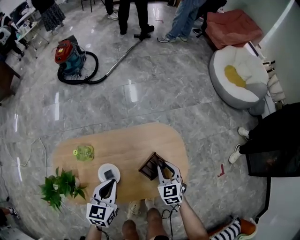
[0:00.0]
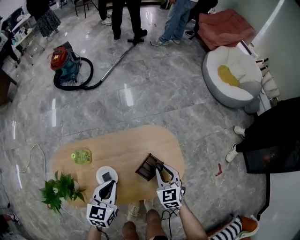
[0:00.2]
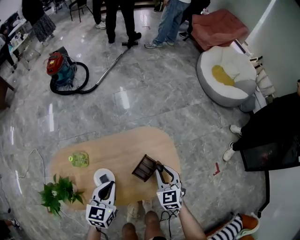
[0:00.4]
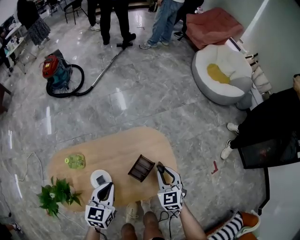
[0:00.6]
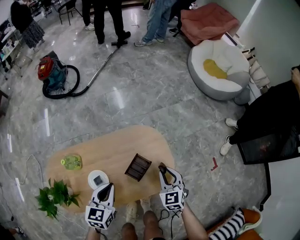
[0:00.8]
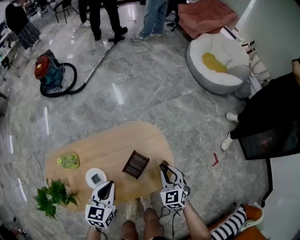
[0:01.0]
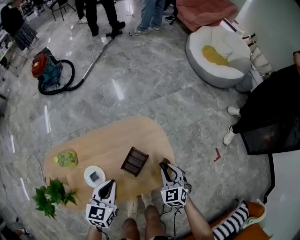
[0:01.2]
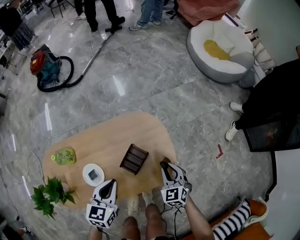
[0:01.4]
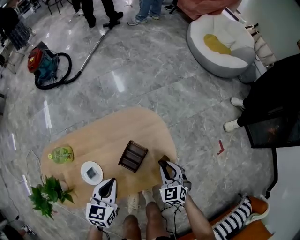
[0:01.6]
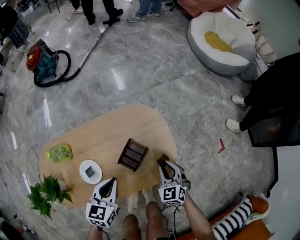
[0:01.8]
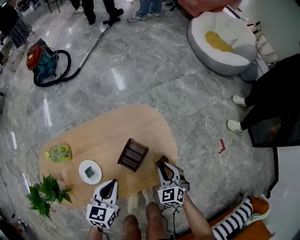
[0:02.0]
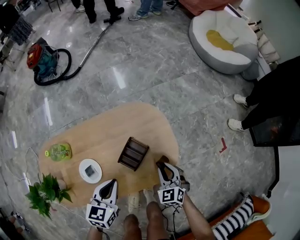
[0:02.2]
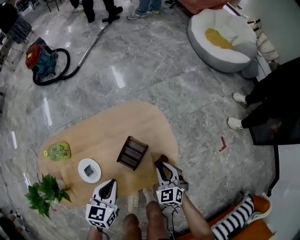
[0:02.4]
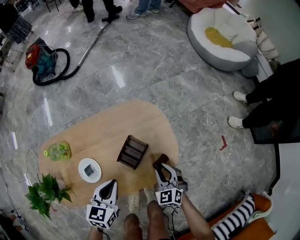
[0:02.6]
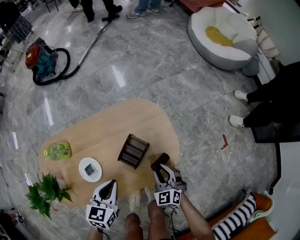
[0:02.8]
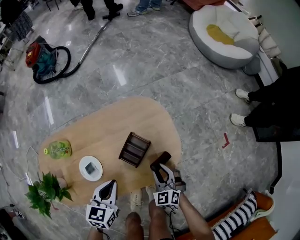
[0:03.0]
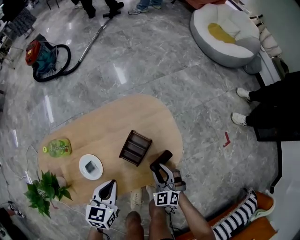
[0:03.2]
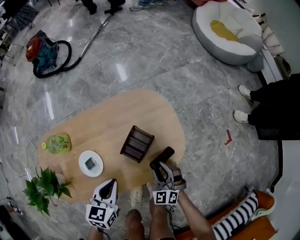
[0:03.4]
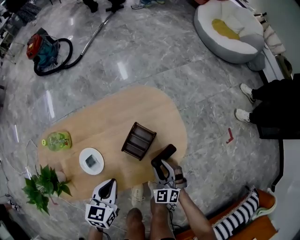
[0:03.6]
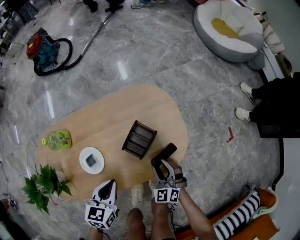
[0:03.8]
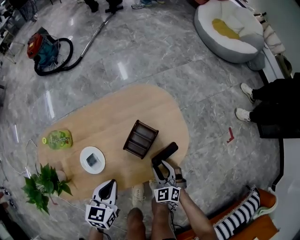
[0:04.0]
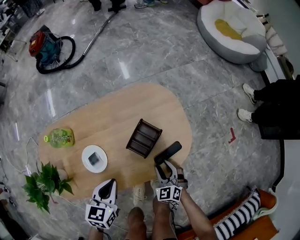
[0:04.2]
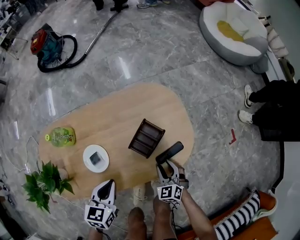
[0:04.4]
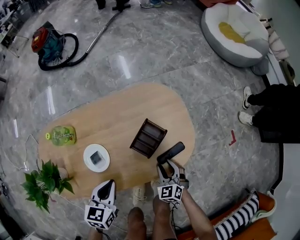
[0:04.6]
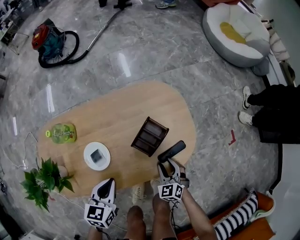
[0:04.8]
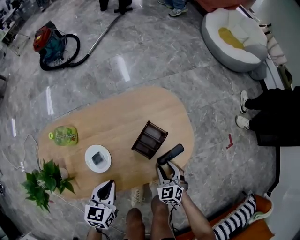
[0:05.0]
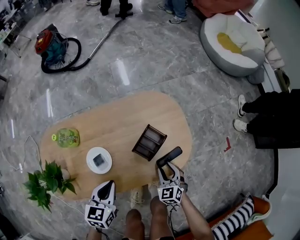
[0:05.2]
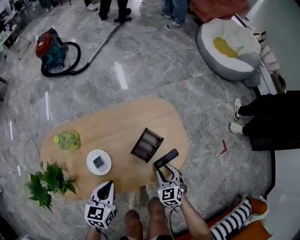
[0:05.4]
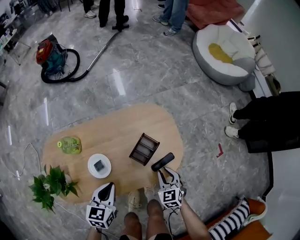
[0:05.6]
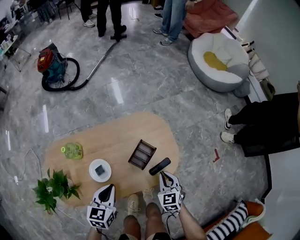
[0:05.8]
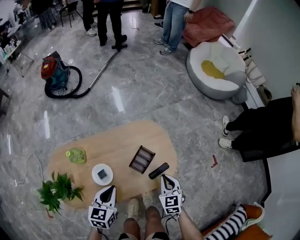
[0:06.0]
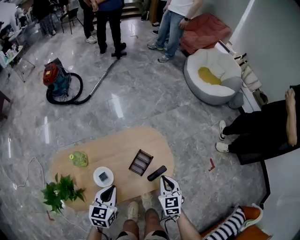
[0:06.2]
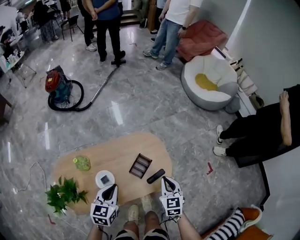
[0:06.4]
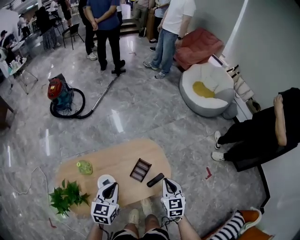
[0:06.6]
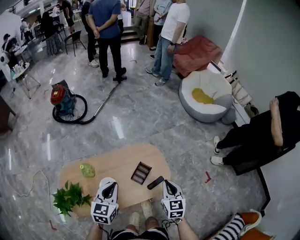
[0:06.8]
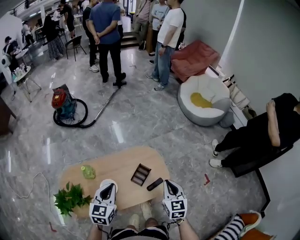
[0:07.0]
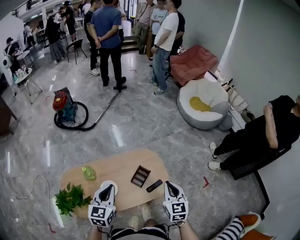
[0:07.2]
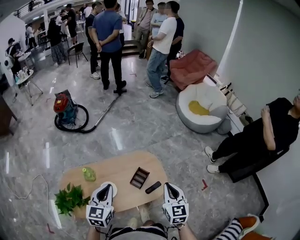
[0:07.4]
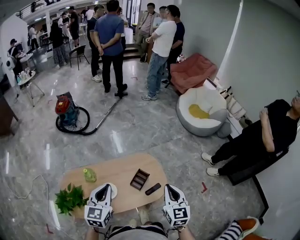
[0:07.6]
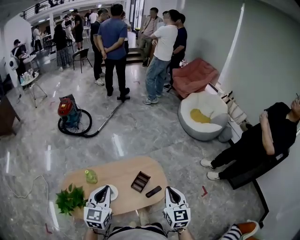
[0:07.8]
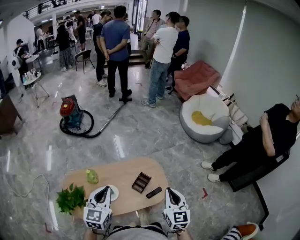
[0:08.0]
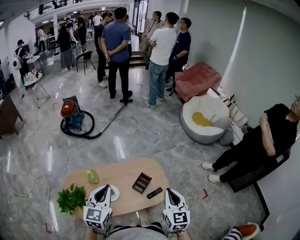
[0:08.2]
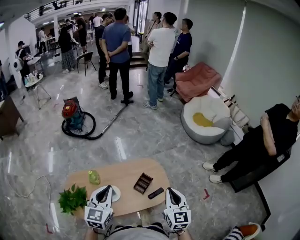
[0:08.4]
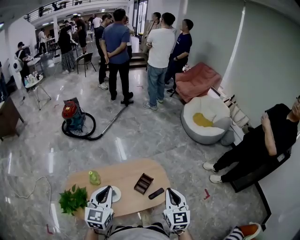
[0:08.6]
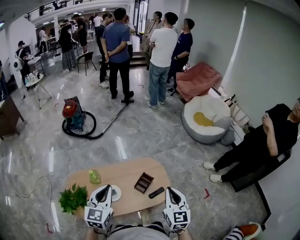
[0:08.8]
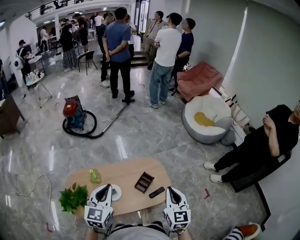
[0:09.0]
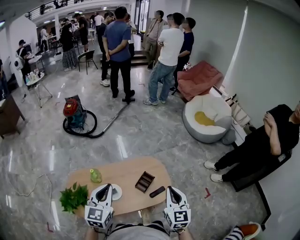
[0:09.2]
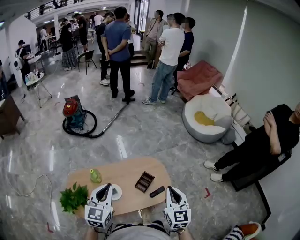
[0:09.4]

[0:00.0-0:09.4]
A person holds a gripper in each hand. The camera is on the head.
0:00.0 to 0:01.6: The right gripper goes approximately 15 cm to the right, downward and backward. Meanwhile the left gripper is displaced to the right and downward by roughly 15 cm.
0:01.6 to 0:03.2: The right gripper moves downward and backward, approximately 10 cm; the left gripper heads downward, covering roughly 5 cm.
0:03.2 to 0:04.8: The right gripper goes roughly 5 cm downward; the left gripper moves to the left, roughly 5 cm.
0:04.8 to 0:06.2: The right gripper goes some 30 cm upward, turns by roughly 30 degrees, and closes its fingers. The left gripper travels upward by some 20 cm.
0:06.2 to 0:07.8: Both grippers move upward, about 25 cm. The right gripper turns by some 20 degrees. The left gripper changes its angle by about 20 degrees.
0:07.8 to 0:09.4: The grippers move only a little.

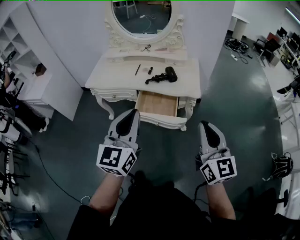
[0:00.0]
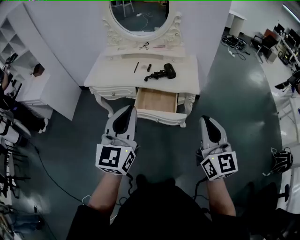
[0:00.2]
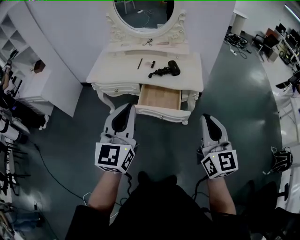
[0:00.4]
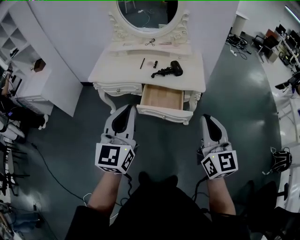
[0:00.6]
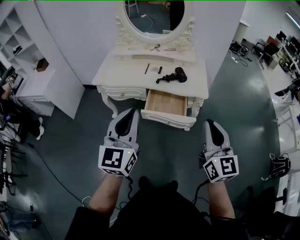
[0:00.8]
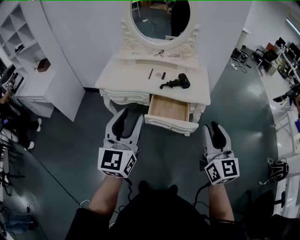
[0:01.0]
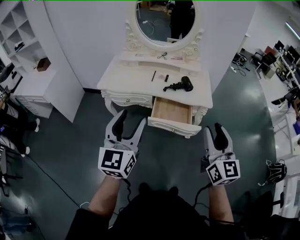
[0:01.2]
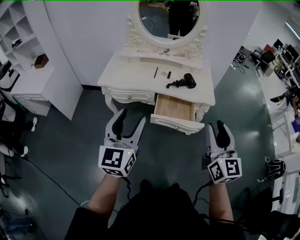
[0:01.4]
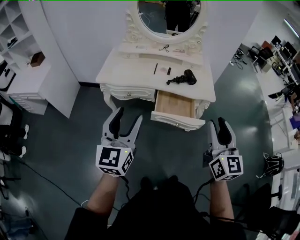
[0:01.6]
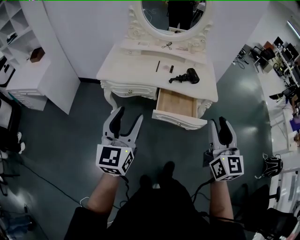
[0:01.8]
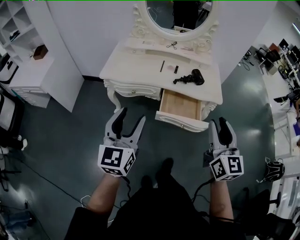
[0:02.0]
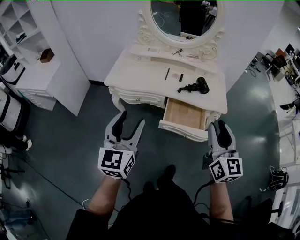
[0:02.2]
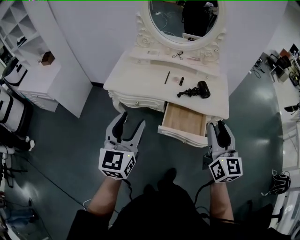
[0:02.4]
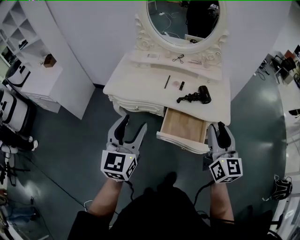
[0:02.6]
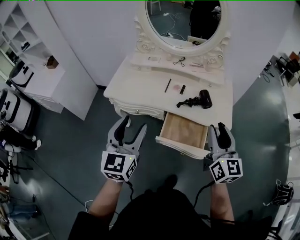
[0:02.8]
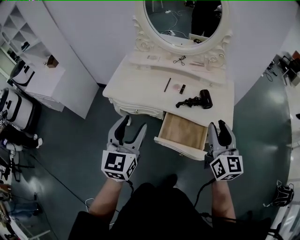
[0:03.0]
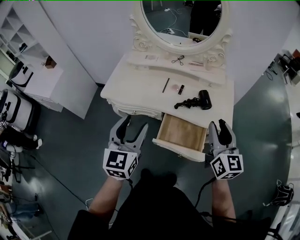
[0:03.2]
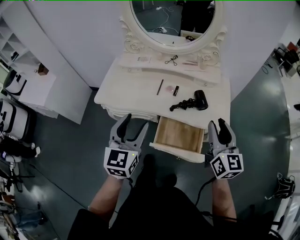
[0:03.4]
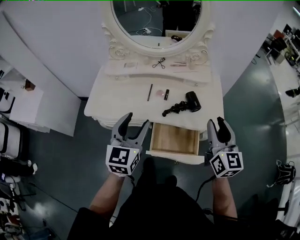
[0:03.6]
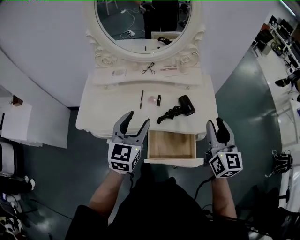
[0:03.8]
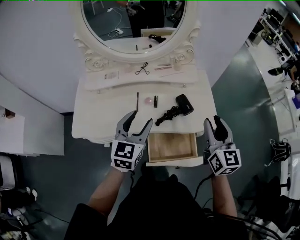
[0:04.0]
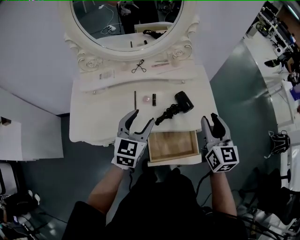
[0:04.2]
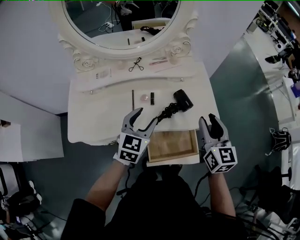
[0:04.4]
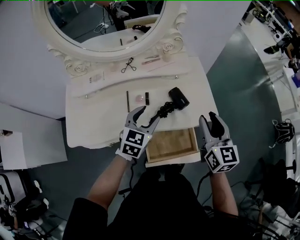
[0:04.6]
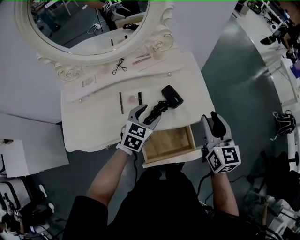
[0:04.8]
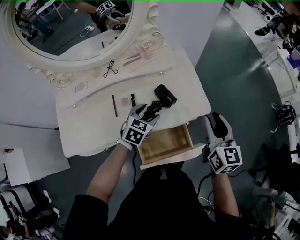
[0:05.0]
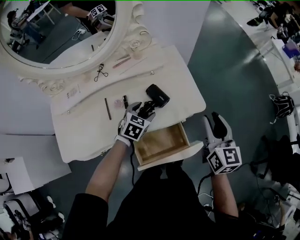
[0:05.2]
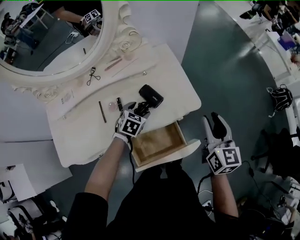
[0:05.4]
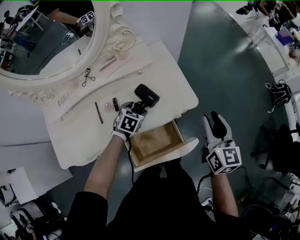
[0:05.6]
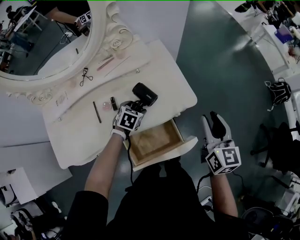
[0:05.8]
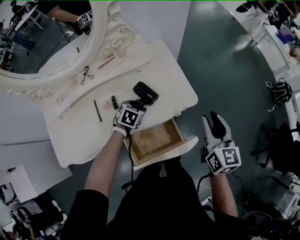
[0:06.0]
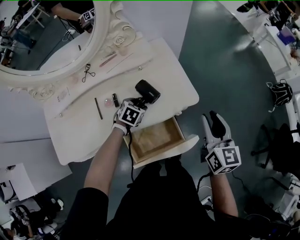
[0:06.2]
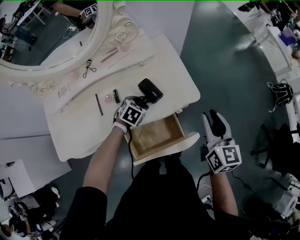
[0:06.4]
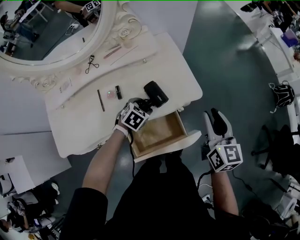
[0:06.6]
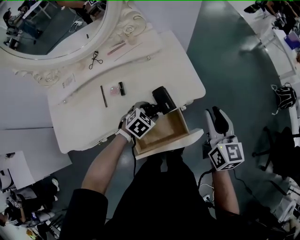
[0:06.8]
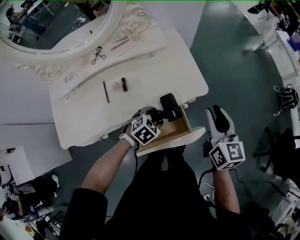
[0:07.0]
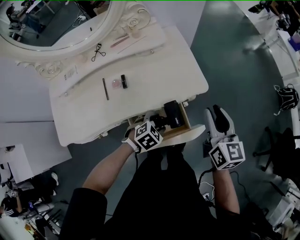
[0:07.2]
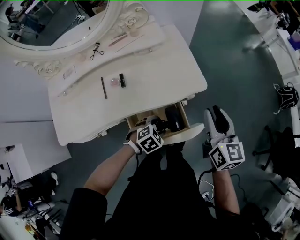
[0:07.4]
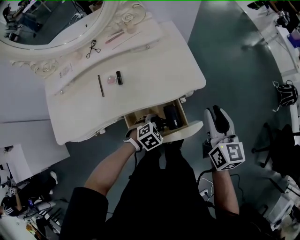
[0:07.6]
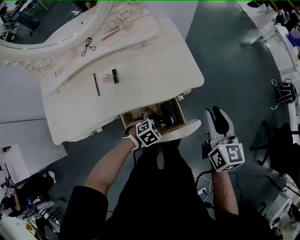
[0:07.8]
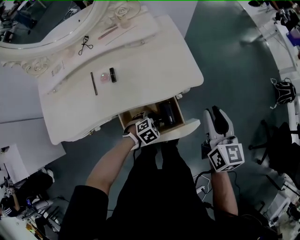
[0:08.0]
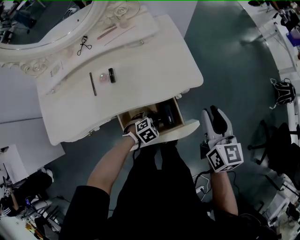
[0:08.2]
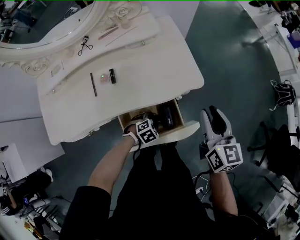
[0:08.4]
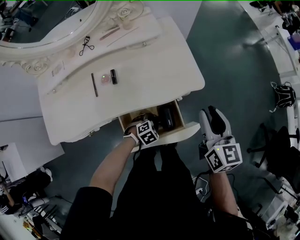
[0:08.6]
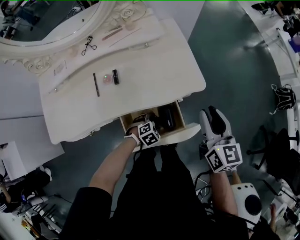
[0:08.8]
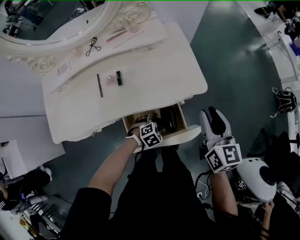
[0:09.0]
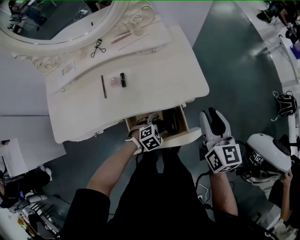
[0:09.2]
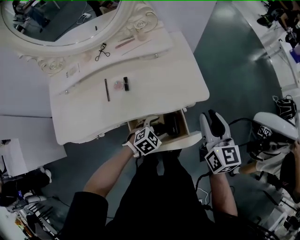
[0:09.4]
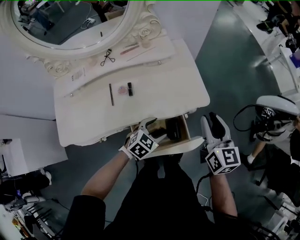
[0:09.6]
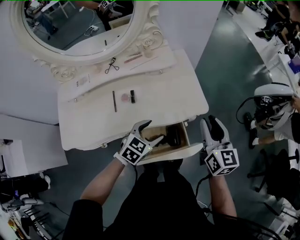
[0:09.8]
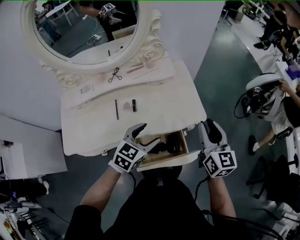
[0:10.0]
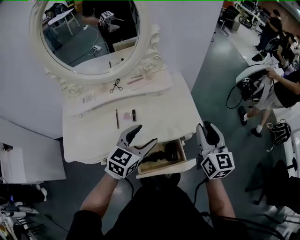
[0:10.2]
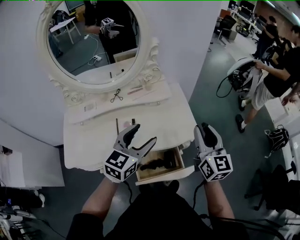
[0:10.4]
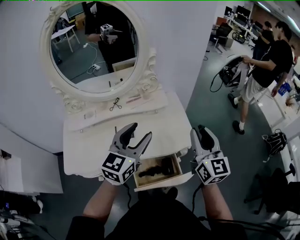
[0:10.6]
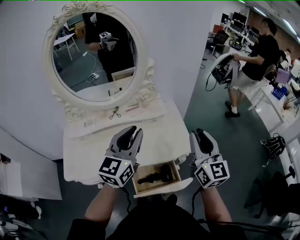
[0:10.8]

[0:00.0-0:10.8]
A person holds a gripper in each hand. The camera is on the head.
0:00.0 to 0:01.6: The grippers both shift to the left by some 20 cm. The right gripper opens up; the left gripper opens its fingers.
0:01.6 to 0:03.0: Both grippers travel together forward, approximately 20 cm.
0:03.0 to 0:04.6: The right gripper moves some 15 cm, and changes its angle by about 30 degrees; the left gripper ends up some 35 cm from where it was, and rotates roughly 40 degrees.
0:04.6 to 0:06.2: The right gripper moves to the right, about 15 cm. The left gripper travels downward, forward and to the right by approximately 20 cm, and points its fingers approximately 30 degrees further downward.
0:06.2 to 0:07.8: The left gripper shifts about 25 cm backward, to the right and downward, and turns by approximately 20 degrees. Meanwhile the right gripper moves roughly 5 cm.
0:07.8 to 0:09.2: The right gripper ends up approximately 5 cm from where it was.
0:09.2 to 0:10.8: The left gripper goes approximately 50 cm upward, tips its fingers upward by approximately 60 degrees, and closes up; the right gripper moves upward, about 20 cm, and rotates roughly 20 degrees.

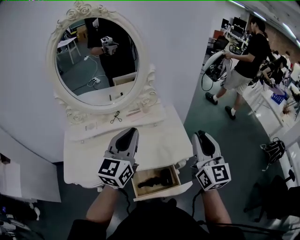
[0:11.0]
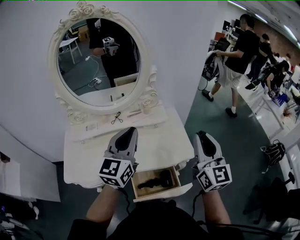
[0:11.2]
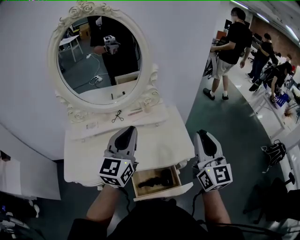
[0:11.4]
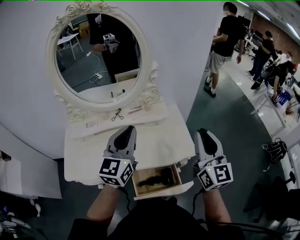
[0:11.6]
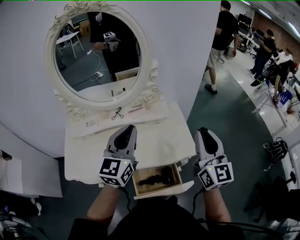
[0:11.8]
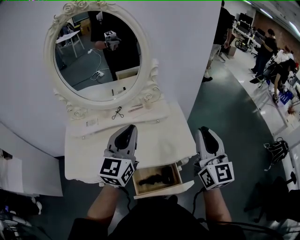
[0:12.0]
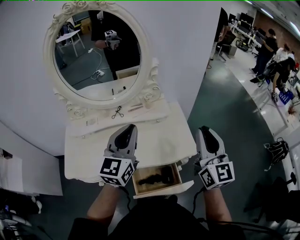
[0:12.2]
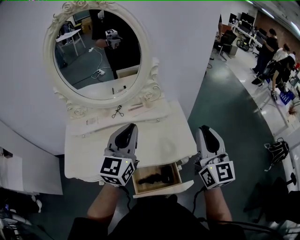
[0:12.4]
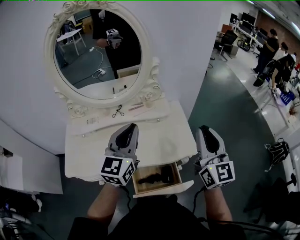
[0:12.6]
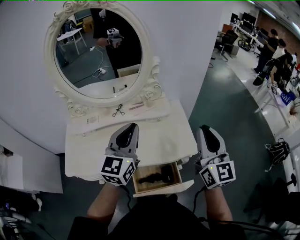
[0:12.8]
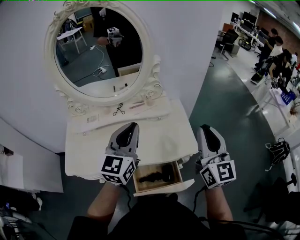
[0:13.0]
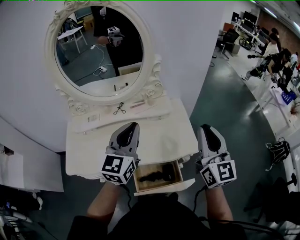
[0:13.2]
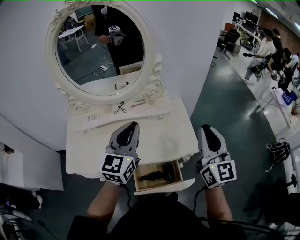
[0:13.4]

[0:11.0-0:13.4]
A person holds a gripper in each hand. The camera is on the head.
0:11.0 to 0:12.2: The grippers move only a little.
0:12.2 to 0:13.4: Both grippers stay put.

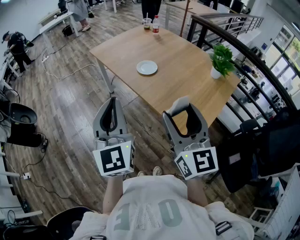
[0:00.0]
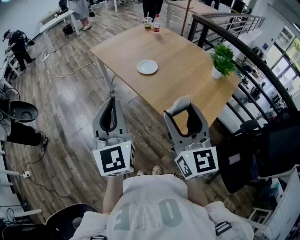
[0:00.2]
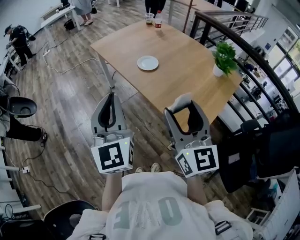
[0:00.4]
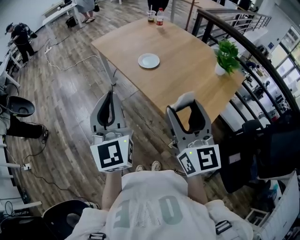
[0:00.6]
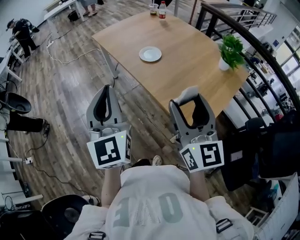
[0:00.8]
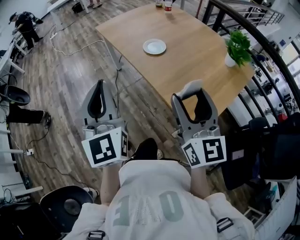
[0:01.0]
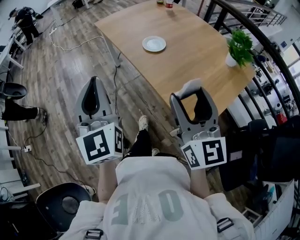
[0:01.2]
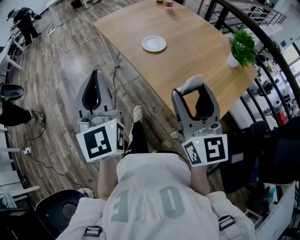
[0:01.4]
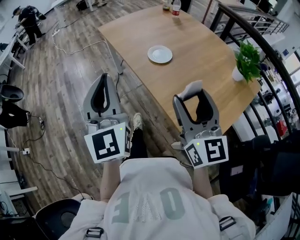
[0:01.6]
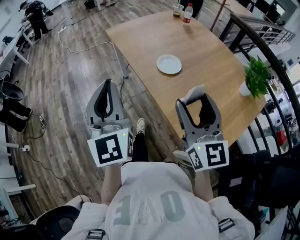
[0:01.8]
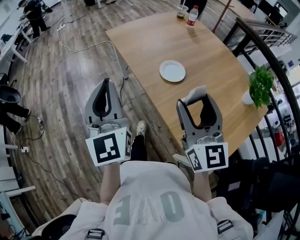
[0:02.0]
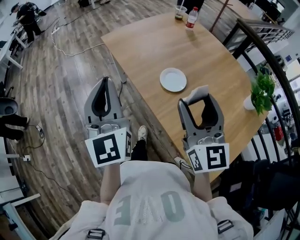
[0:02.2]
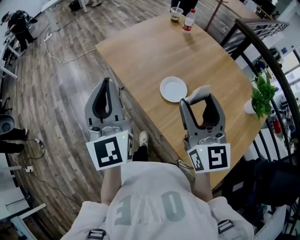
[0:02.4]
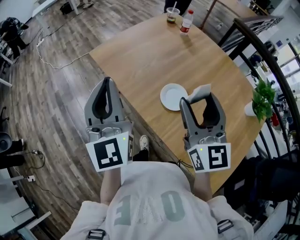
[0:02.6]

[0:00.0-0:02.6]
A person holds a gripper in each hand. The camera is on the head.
0:00.0 to 0:01.2: The right gripper moves some 5 cm.
0:01.2 to 0:02.6: Both grippers travel together forward, about 40 cm.
